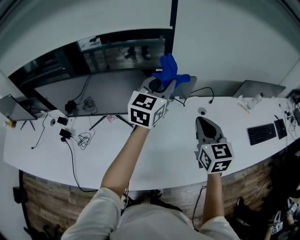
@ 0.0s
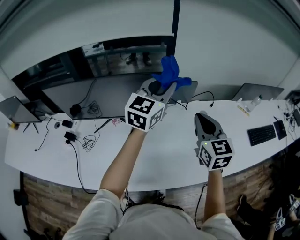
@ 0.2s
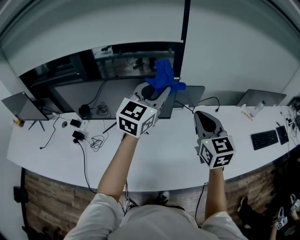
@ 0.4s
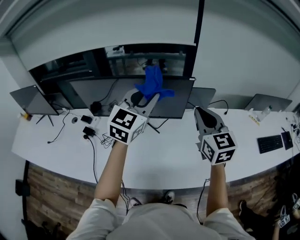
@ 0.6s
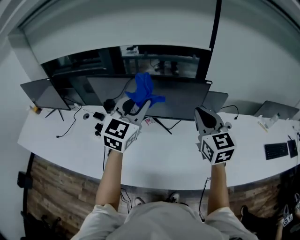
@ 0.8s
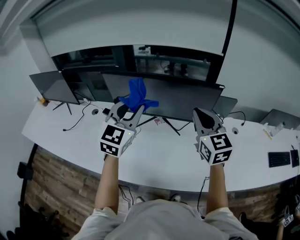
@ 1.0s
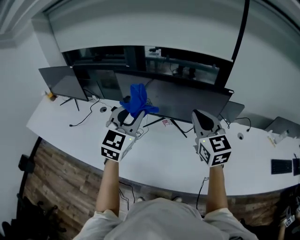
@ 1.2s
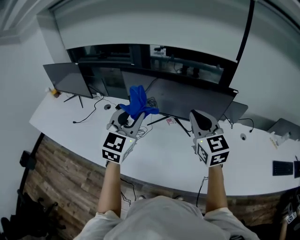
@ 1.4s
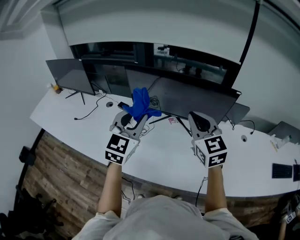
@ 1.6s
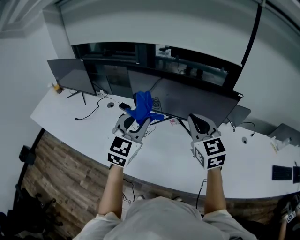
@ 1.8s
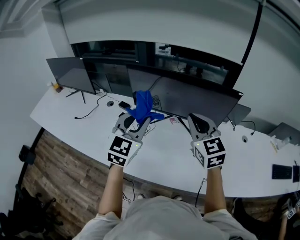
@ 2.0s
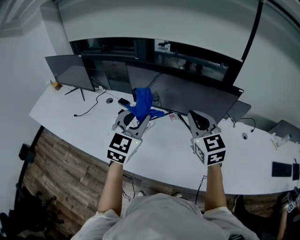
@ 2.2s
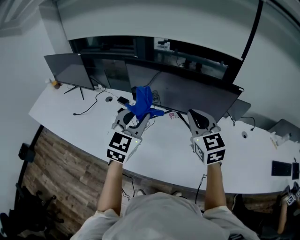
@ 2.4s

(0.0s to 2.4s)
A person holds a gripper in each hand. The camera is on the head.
0.0s - 1.2s: The left gripper moves some 50 cm, and rotates approximately 30 degrees. The right gripper shifts by about 35 cm, and rotates some 30 degrees.
1.2s - 2.4s: The left gripper moves roughly 5 cm. Meanwhile the right gripper goes about 5 cm to the left.

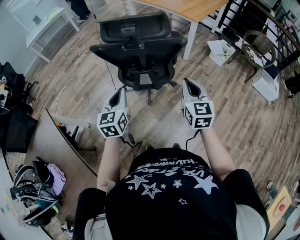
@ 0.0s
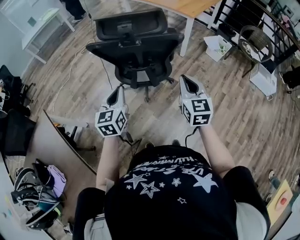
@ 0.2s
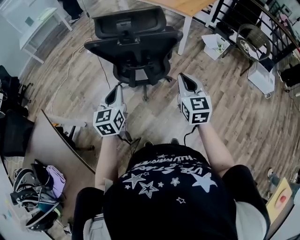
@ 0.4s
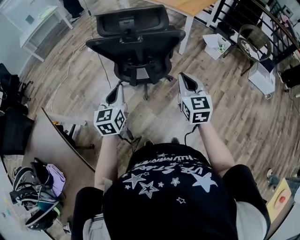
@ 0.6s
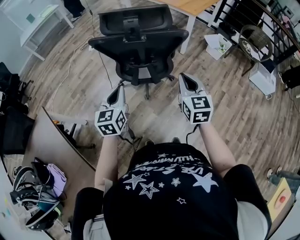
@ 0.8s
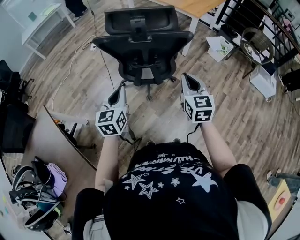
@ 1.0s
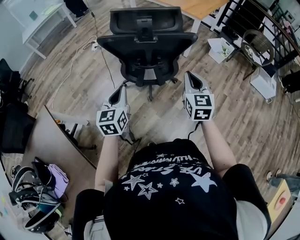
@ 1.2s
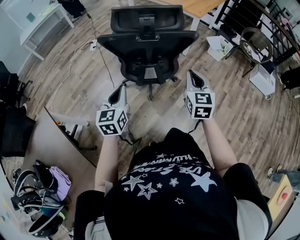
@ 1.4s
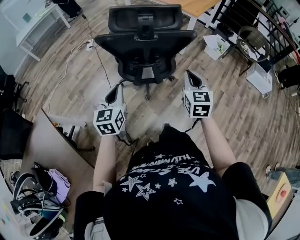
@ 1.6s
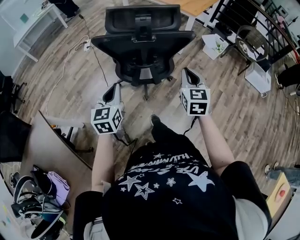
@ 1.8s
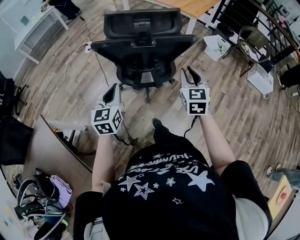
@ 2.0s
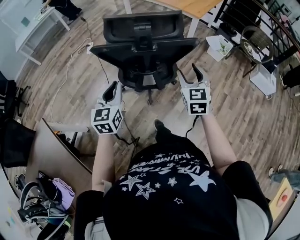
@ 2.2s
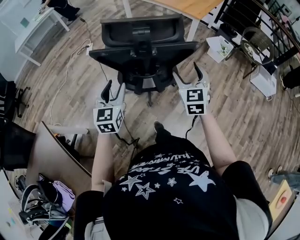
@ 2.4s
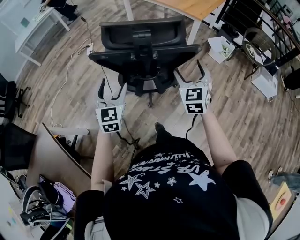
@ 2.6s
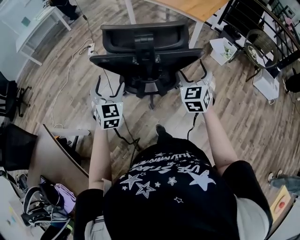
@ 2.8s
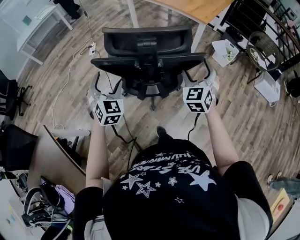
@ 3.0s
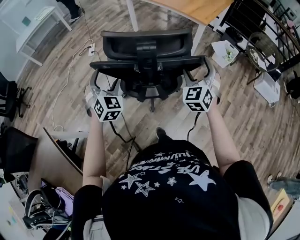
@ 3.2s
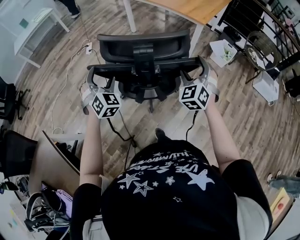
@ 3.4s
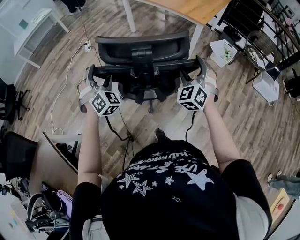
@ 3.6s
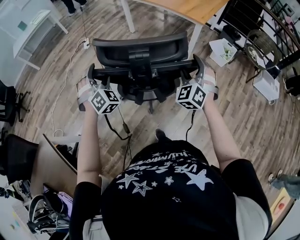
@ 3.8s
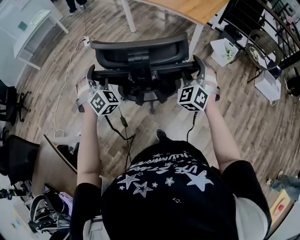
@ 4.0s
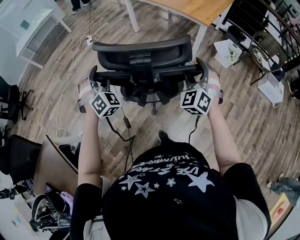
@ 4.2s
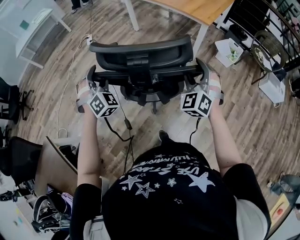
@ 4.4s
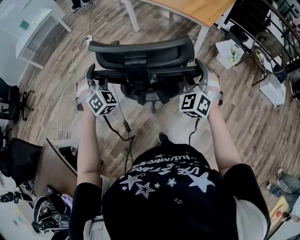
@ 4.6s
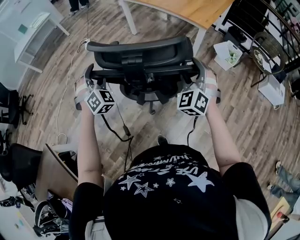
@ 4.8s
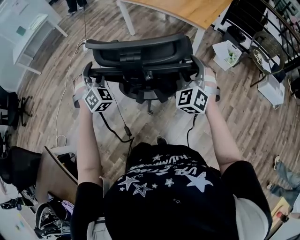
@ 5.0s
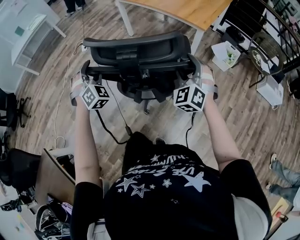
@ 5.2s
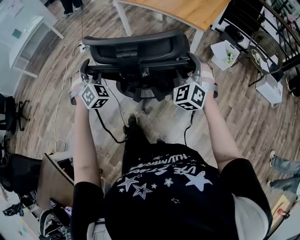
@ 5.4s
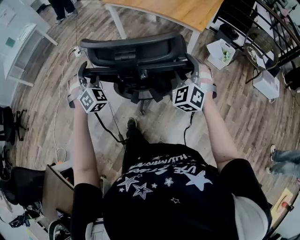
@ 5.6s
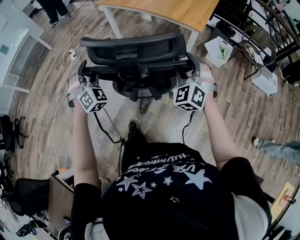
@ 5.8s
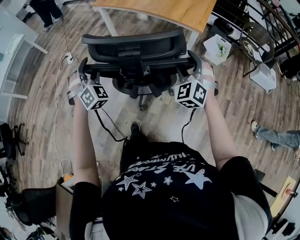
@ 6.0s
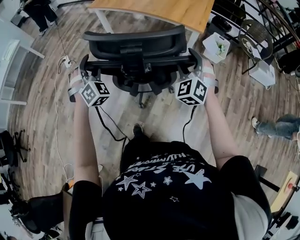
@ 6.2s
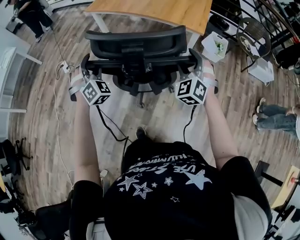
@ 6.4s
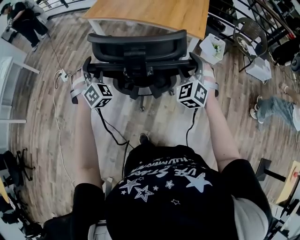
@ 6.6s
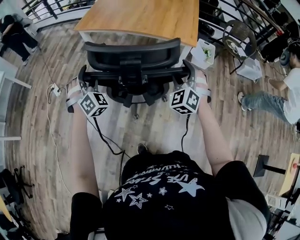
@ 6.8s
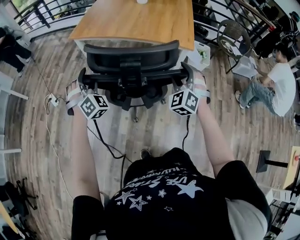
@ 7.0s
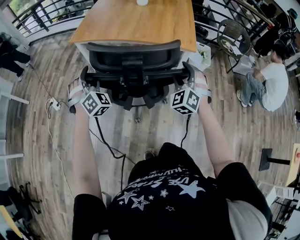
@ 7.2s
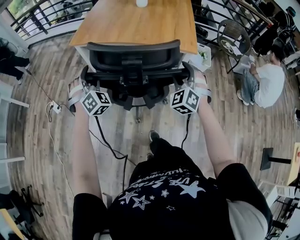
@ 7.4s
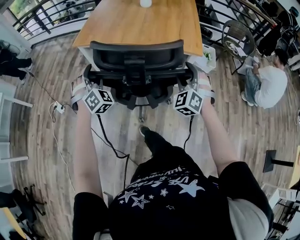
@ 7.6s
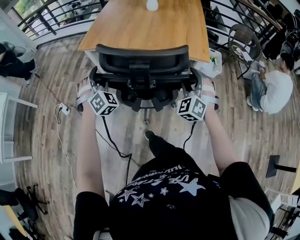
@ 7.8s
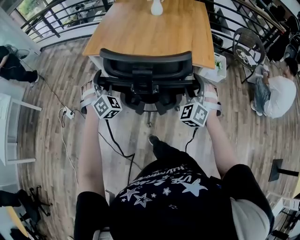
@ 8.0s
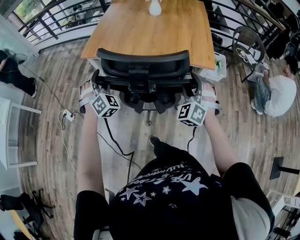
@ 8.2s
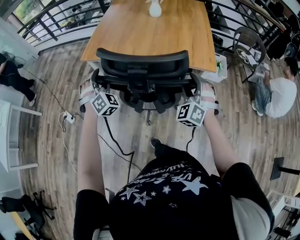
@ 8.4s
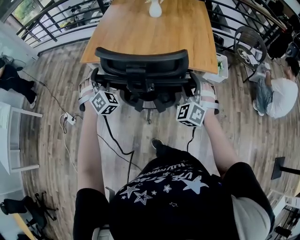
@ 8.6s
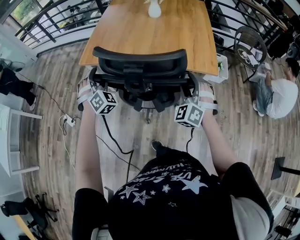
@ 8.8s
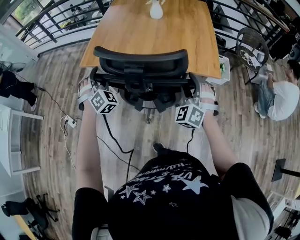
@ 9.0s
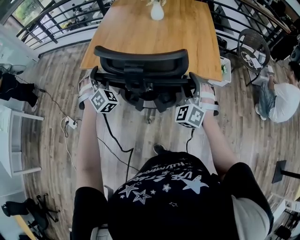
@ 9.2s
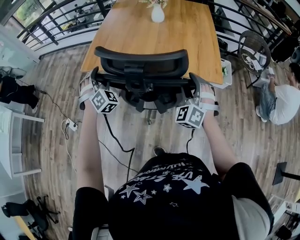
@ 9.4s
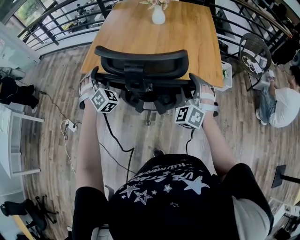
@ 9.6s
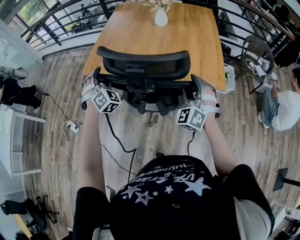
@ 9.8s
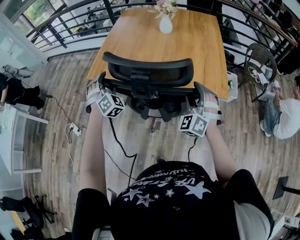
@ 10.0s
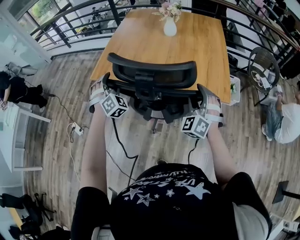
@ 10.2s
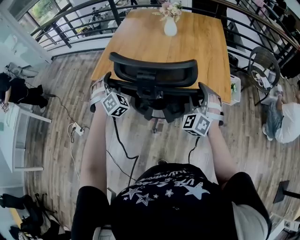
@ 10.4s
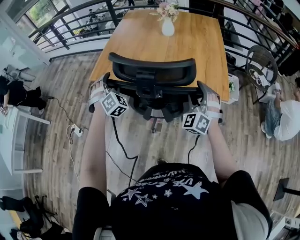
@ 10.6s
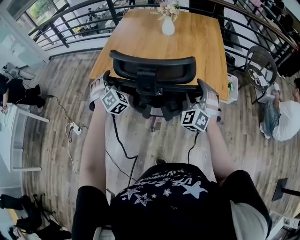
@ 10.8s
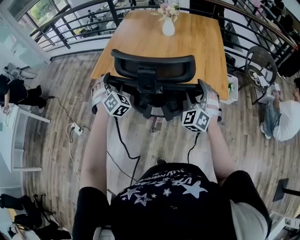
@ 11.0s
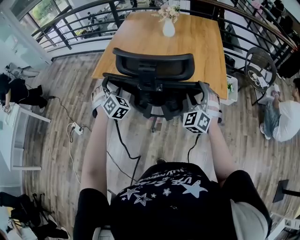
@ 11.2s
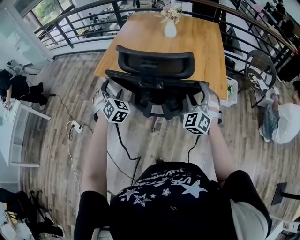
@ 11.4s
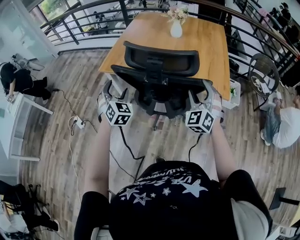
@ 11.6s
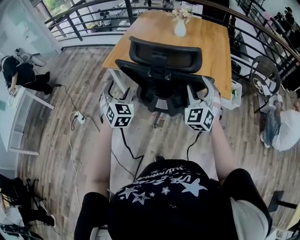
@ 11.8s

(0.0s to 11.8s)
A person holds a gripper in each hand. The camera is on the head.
0.0s - 1.4s: Both grippers move to the left, approximately 5 cm.
1.4s - 3.0s: Both grippers travel together forward, about 20 cm. The left gripper rolls clockwise, seen from behind, by about 40 degrees, and opens up. The right gripper changes its angle by roughly 30 degrees, and opens its fingers.
3.0s - 4.4s: The right gripper shifts approximately 5 cm forward; the left gripper goes approximately 10 cm forward, swivels about 30 degrees, and closes.
4.4s - 6.0s: The grippers both shift forward by some 25 cm.
6.0s - 7.4s: The right gripper travels forward and to the left by approximately 20 cm, and turns by some 20 degrees, while the left gripper is displaced forward by roughly 30 cm.
7.4s - 8.8s: Both grippers move forward, some 15 cm.
8.8s - 10.4s: The two grippers go approximately 10 cm forward.
10.4s - 11.8s: The left gripper shifts some 15 cm backward, and rotates roughly 30 degrees. The right gripper moves backward and upward, roughly 10 cm.

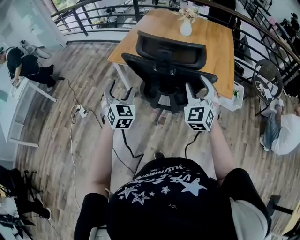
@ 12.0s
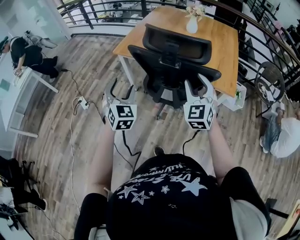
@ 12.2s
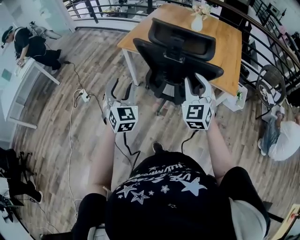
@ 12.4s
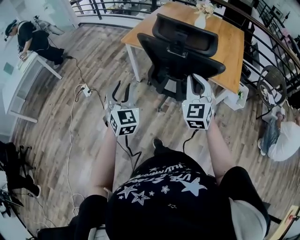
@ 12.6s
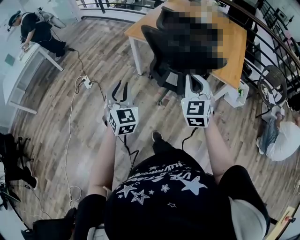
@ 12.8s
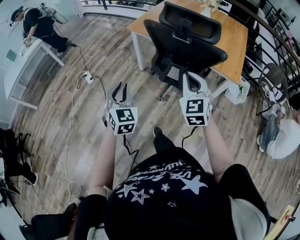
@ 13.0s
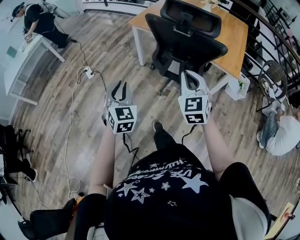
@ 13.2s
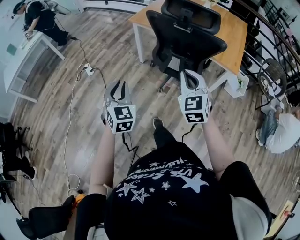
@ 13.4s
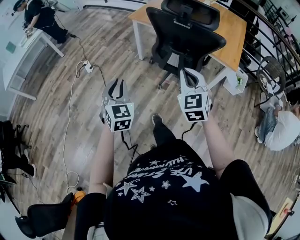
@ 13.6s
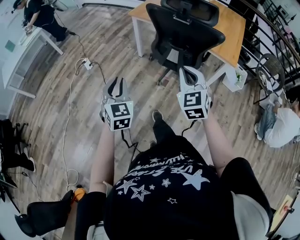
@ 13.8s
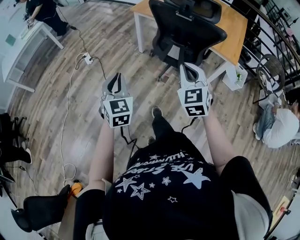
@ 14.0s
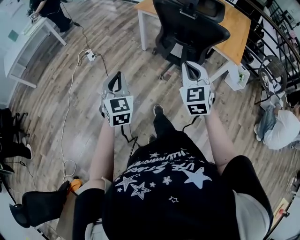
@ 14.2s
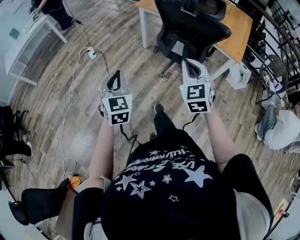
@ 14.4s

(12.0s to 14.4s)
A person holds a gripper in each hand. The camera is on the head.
12.0s - 13.2s: The left gripper travels backward by about 25 cm, and closes, while the right gripper travels backward and to the left by approximately 20 cm, changes its angle by some 20 degrees, and closes up.
13.2s - 14.4s: Both grippers travel together backward, about 10 cm.

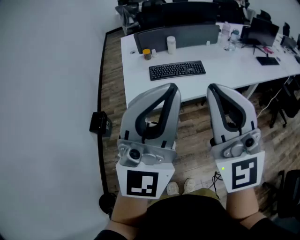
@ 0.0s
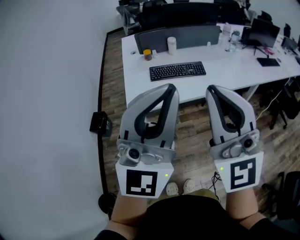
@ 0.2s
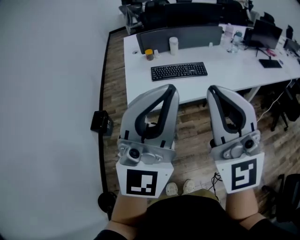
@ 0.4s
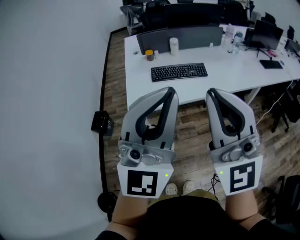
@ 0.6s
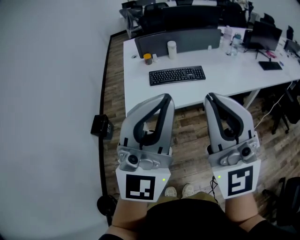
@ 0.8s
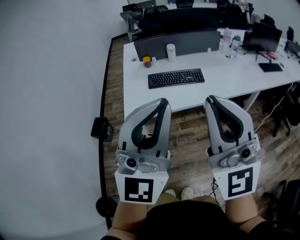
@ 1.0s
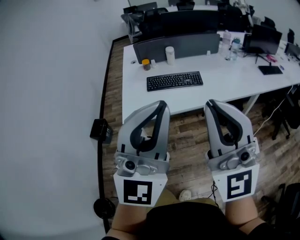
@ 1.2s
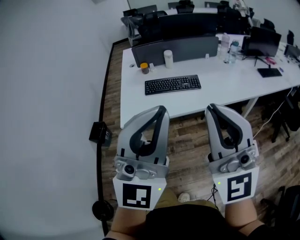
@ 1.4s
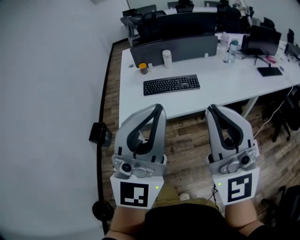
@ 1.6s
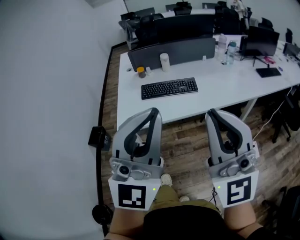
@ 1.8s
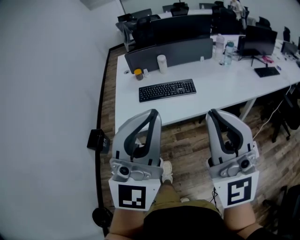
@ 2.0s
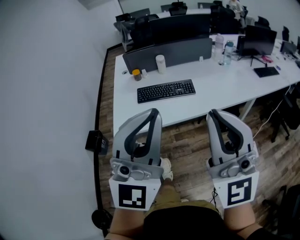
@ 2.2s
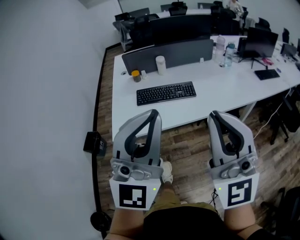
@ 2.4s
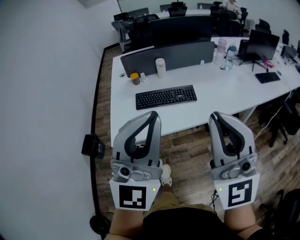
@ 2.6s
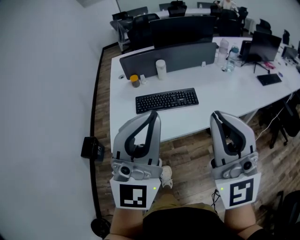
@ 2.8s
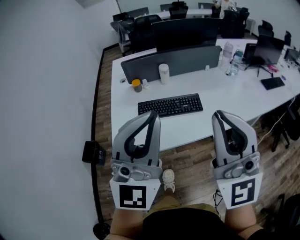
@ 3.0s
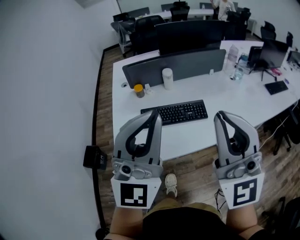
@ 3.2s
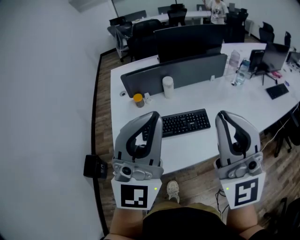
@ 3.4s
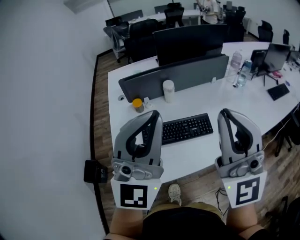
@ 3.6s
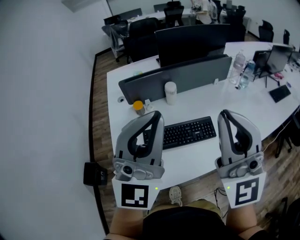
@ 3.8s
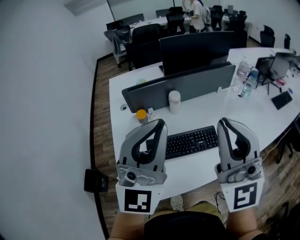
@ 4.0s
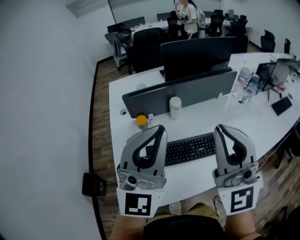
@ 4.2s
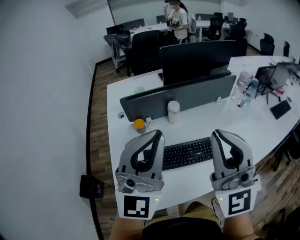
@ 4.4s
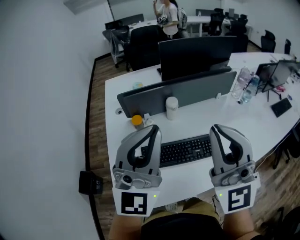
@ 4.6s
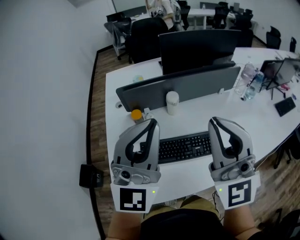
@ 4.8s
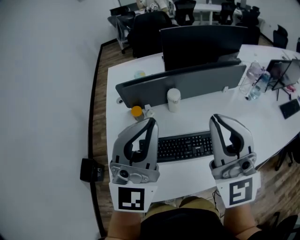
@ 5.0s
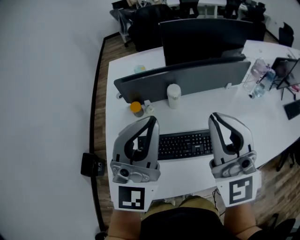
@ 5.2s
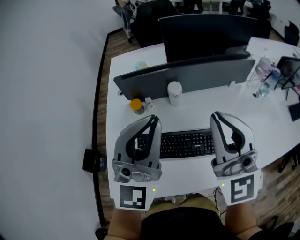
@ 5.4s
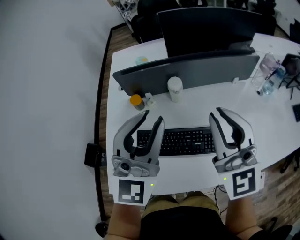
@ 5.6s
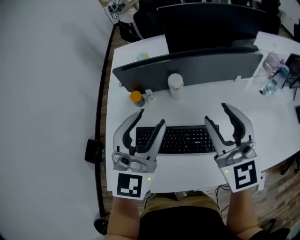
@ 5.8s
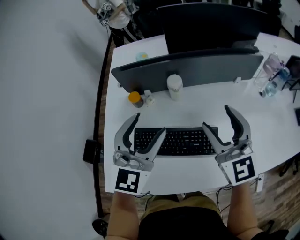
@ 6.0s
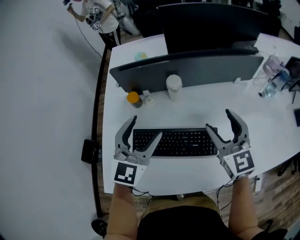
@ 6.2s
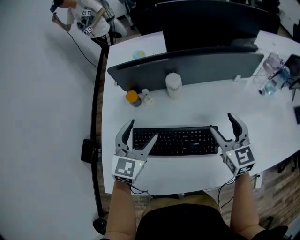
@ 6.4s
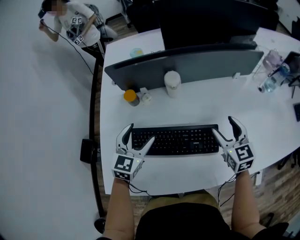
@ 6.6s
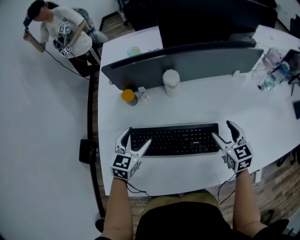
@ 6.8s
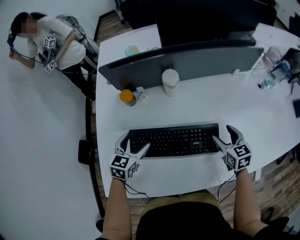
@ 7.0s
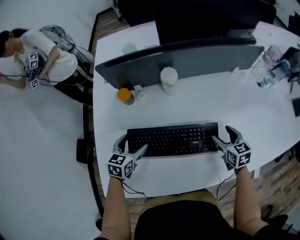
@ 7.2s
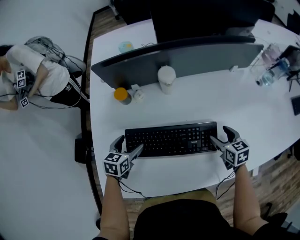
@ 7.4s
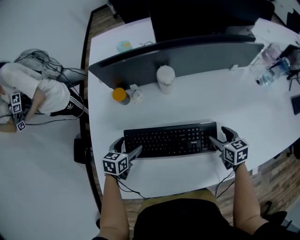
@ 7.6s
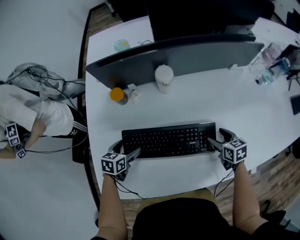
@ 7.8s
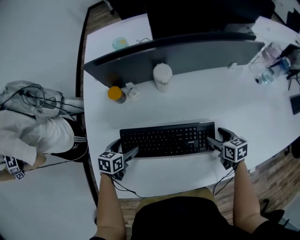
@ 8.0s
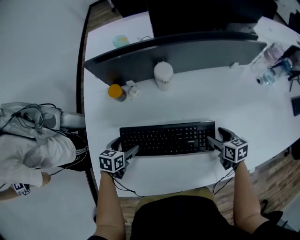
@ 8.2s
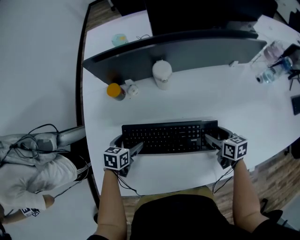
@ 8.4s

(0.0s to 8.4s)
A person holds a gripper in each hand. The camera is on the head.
0.0s - 1.4s: Both grippers move to the right, approximately 10 cm.
1.4s - 2.8s: The two grippers go approximately 15 cm forward.
2.8s - 4.2s: The grippers both shift forward by approximately 30 cm.
4.2s - 5.6s: Both grippers move forward, downward and to the right, about 15 cm. The right gripper changes its angle by about 20 degrees.
5.6s - 7.0s: The two grippers go roughly 35 cm downward. The left gripper points its fingers roughly 40 degrees further downward, and opens its fingers. Meanwhile the right gripper points its fingers roughly 40 degrees further downward, and opens up.
7.0s - 8.4s: The grippers both shift downward by approximately 10 cm. The right gripper swivels roughly 20 degrees. The left gripper turns by about 30 degrees.
